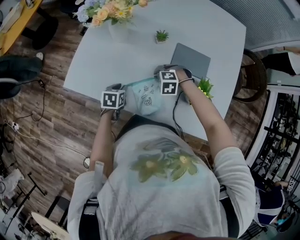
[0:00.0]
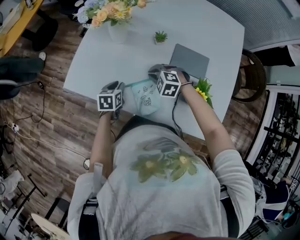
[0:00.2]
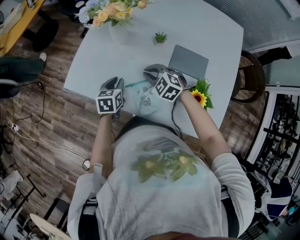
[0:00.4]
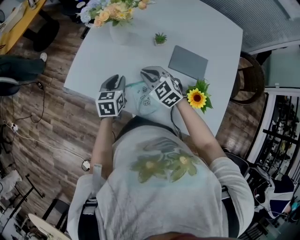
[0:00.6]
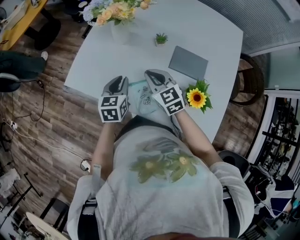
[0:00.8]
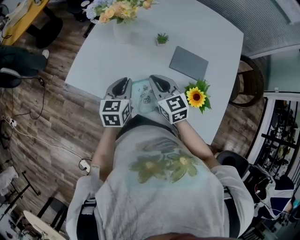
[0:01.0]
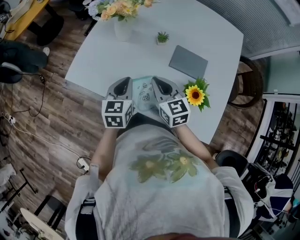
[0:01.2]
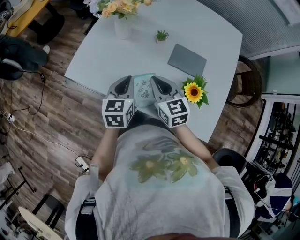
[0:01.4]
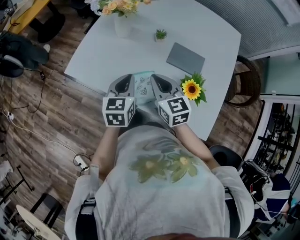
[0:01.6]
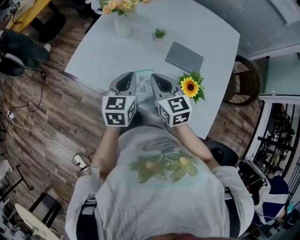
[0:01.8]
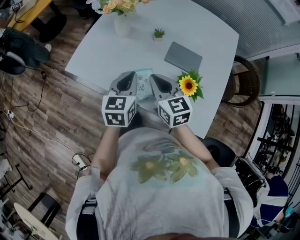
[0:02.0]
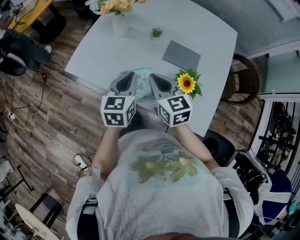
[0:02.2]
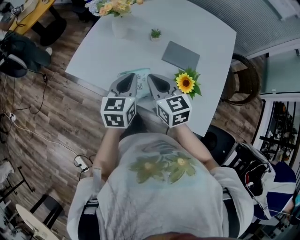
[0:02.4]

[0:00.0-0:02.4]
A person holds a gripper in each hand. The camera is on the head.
0:00.0 to 0:01.2: The grippers both shift upward by about 20 cm. The left gripper turns by some 30 degrees, while the right gripper points its fingers some 50 degrees further upward.
0:01.2 to 0:02.4: The two grippers go about 10 cm upward and backward.

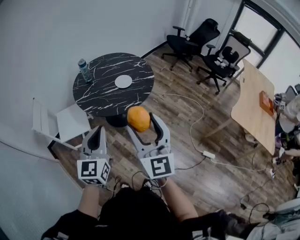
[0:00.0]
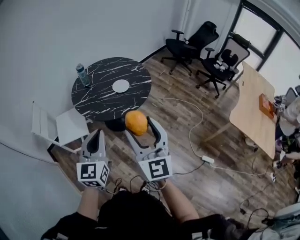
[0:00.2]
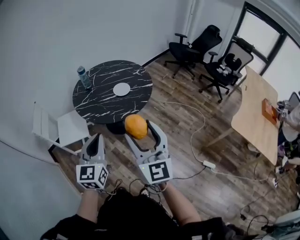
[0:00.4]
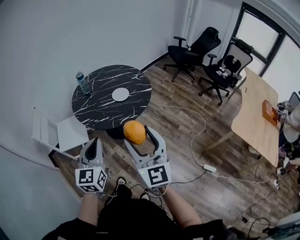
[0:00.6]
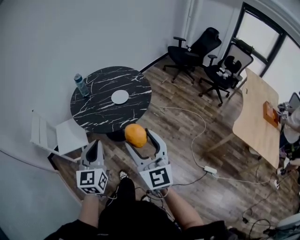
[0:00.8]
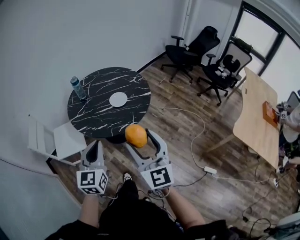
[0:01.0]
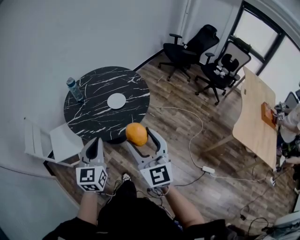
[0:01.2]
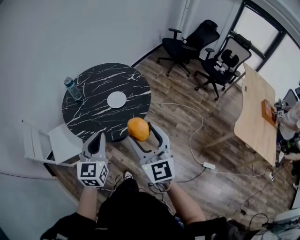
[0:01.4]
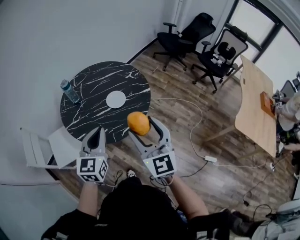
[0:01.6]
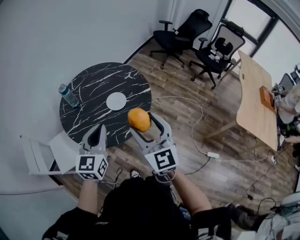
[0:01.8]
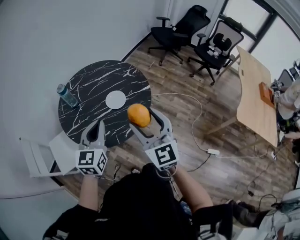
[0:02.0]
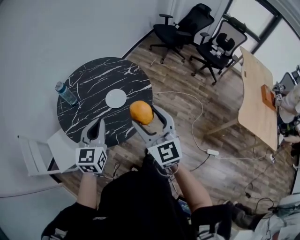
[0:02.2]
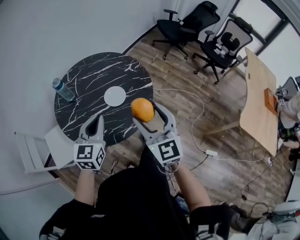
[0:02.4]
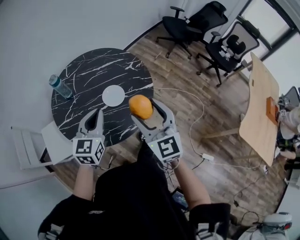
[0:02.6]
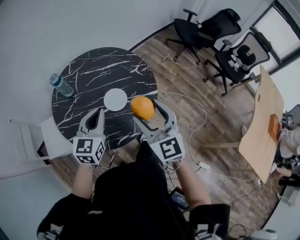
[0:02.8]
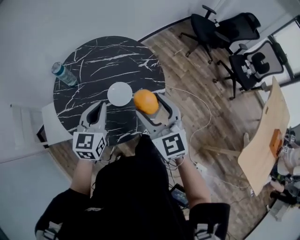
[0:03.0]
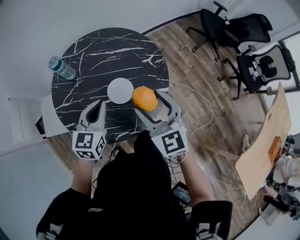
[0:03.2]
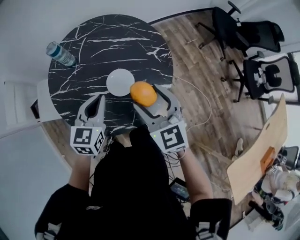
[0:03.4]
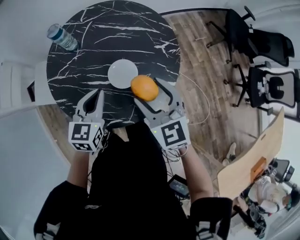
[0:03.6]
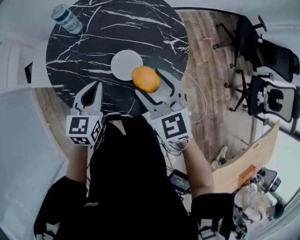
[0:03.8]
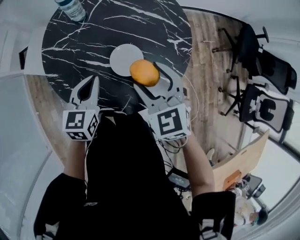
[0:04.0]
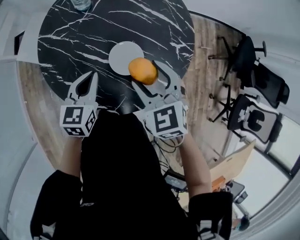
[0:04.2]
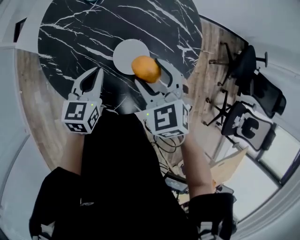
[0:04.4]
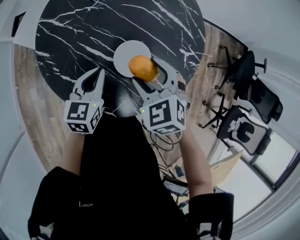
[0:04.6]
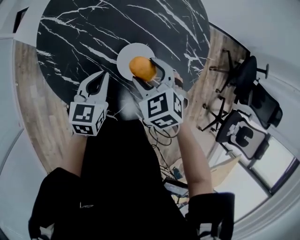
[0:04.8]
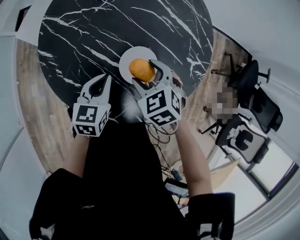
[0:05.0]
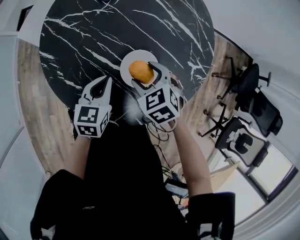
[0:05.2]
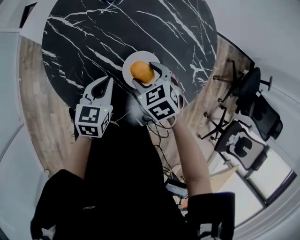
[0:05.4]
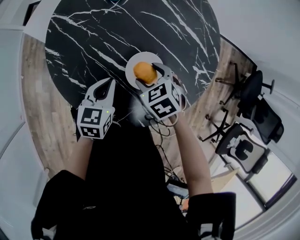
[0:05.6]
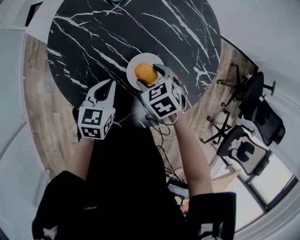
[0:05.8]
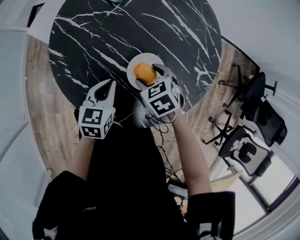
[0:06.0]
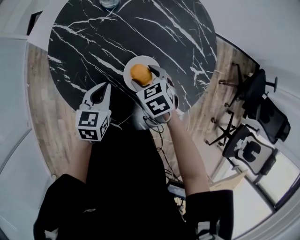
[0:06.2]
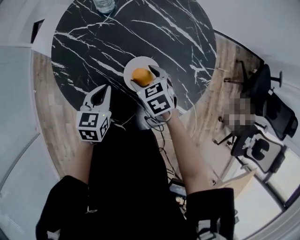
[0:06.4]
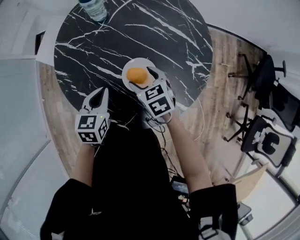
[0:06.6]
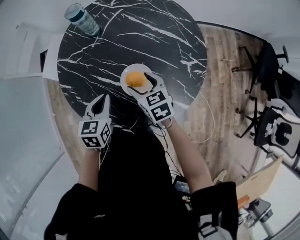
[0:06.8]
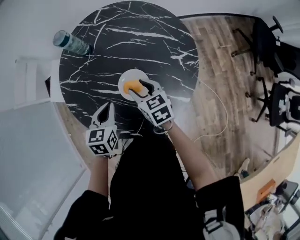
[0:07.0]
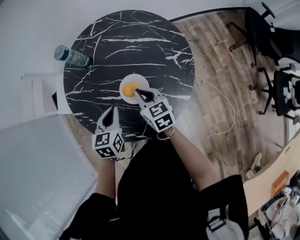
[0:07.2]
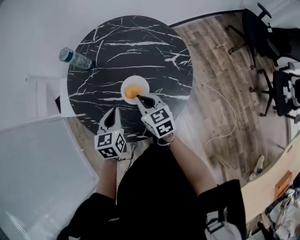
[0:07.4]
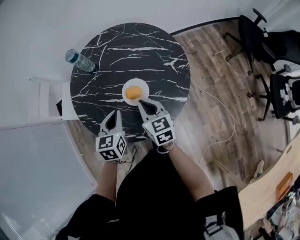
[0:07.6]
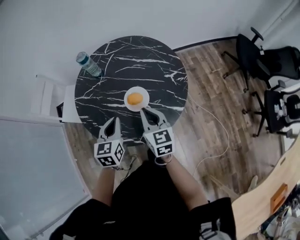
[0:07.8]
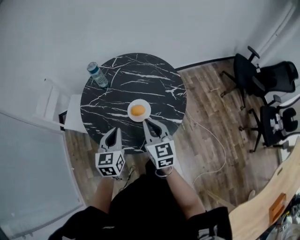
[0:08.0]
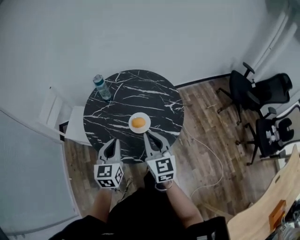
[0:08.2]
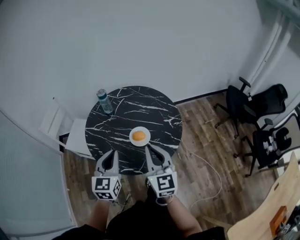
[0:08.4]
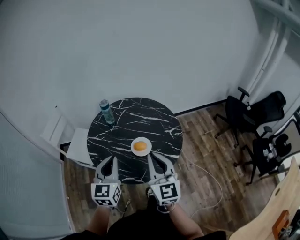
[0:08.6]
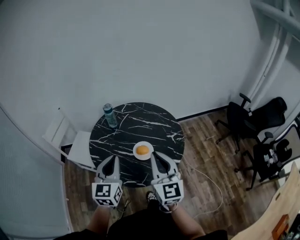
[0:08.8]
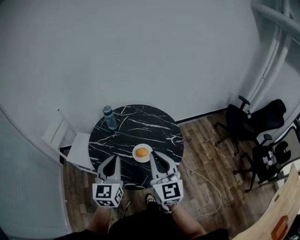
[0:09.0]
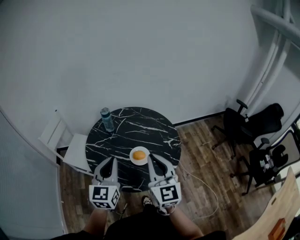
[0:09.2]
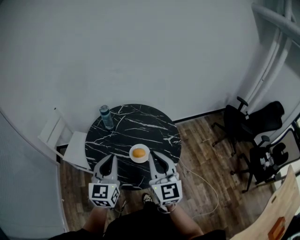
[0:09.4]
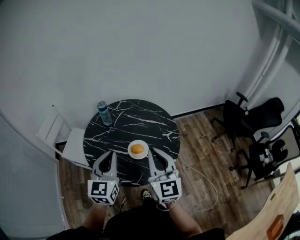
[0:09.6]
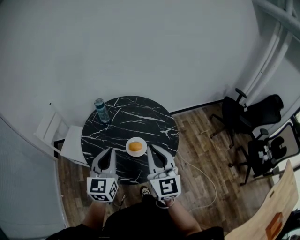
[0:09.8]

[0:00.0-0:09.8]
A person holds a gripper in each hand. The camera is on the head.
0:00.0 to 0:01.4: Both grippers move forward, about 20 cm.
0:01.4 to 0:02.8: Both grippers travel together forward, approximately 25 cm.
0:02.8 to 0:04.2: The left gripper moves downward, approximately 20 cm, and turns by roughly 40 degrees, while the right gripper shifts by about 25 cm, and angles its fingers downward, by some 30 degrees.
0:04.2 to 0:05.6: The left gripper goes roughly 10 cm downward, while the right gripper travels downward by roughly 20 cm, and changes its angle by some 30 degrees.
0:05.6 to 0:07.0: The grippers both shift upward by approximately 10 cm. The right gripper angles its fingers upward, by some 30 degrees.
0:07.0 to 0:08.4: Both grippers travel together upward and backward, some 30 cm. The right gripper angles its fingers upward, by some 30 degrees, and closes up, while the left gripper turns by approximately 30 degrees.
0:08.4 to 0:09.8: Both grippers move upward, about 5 cm.

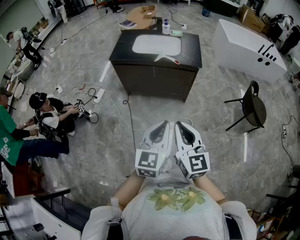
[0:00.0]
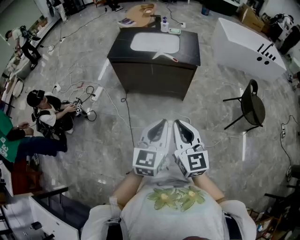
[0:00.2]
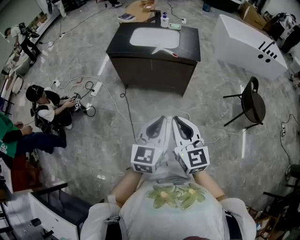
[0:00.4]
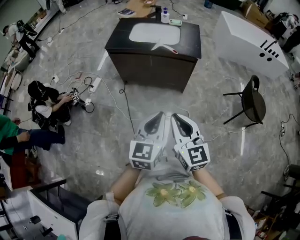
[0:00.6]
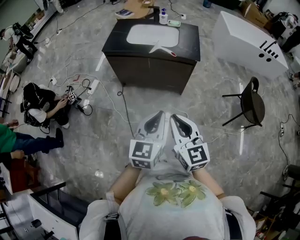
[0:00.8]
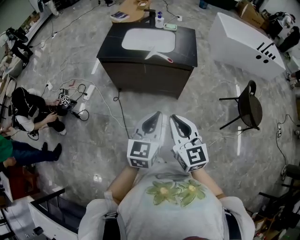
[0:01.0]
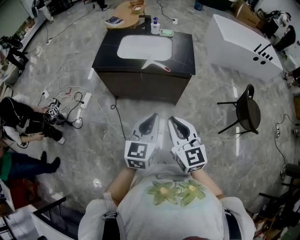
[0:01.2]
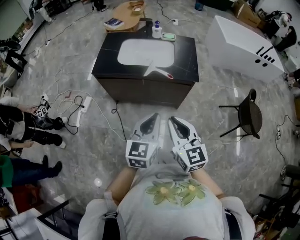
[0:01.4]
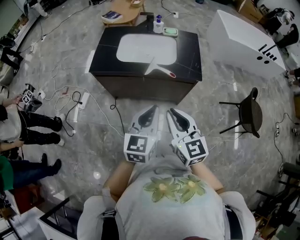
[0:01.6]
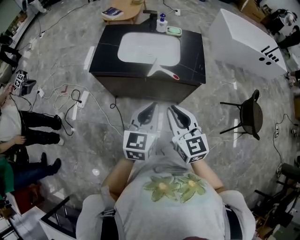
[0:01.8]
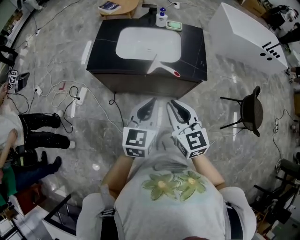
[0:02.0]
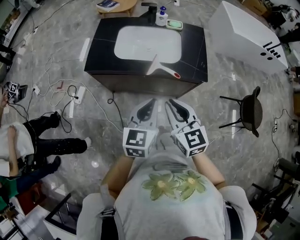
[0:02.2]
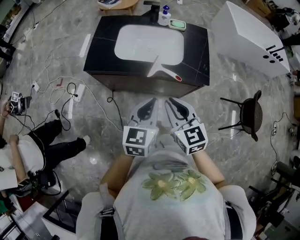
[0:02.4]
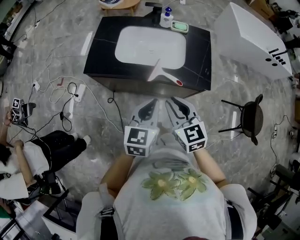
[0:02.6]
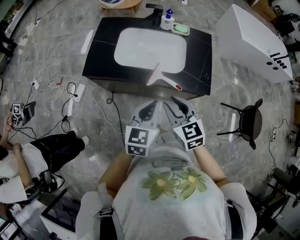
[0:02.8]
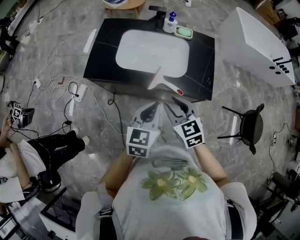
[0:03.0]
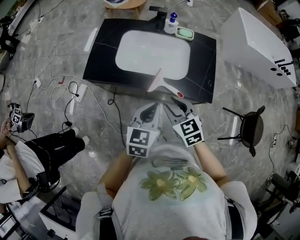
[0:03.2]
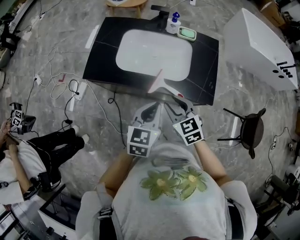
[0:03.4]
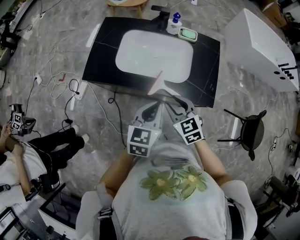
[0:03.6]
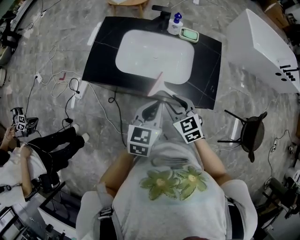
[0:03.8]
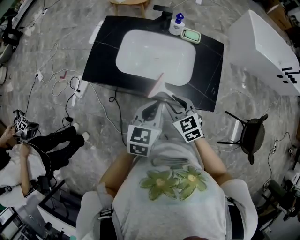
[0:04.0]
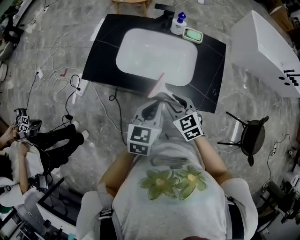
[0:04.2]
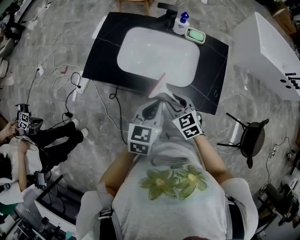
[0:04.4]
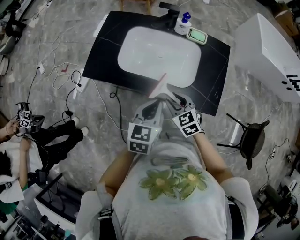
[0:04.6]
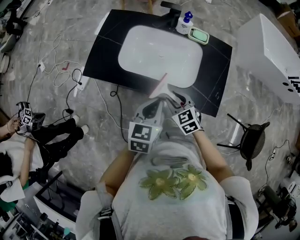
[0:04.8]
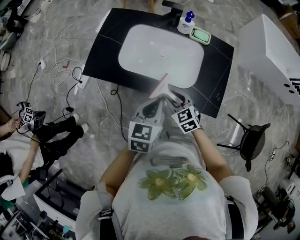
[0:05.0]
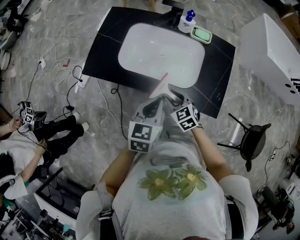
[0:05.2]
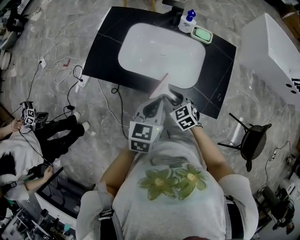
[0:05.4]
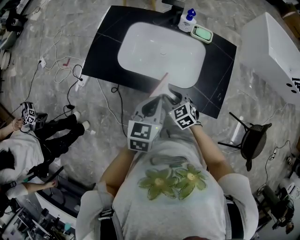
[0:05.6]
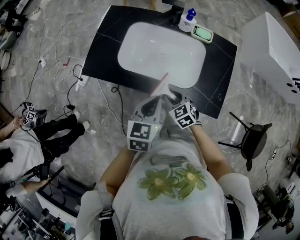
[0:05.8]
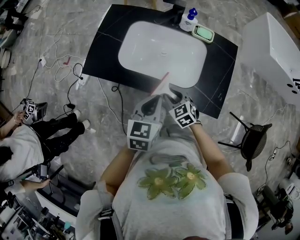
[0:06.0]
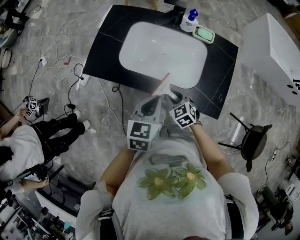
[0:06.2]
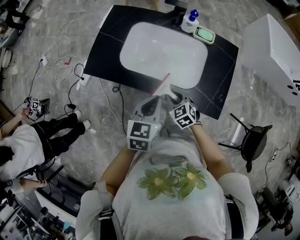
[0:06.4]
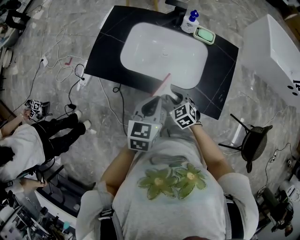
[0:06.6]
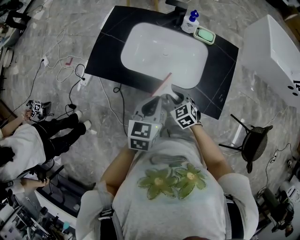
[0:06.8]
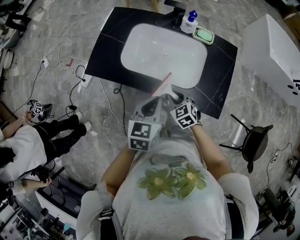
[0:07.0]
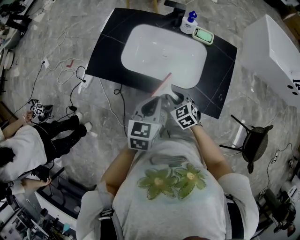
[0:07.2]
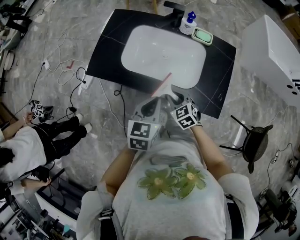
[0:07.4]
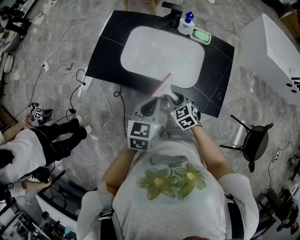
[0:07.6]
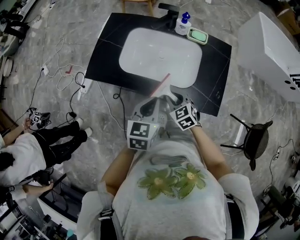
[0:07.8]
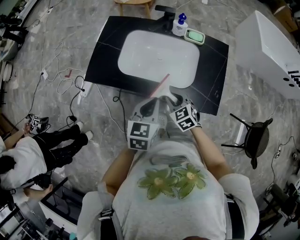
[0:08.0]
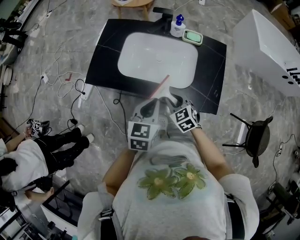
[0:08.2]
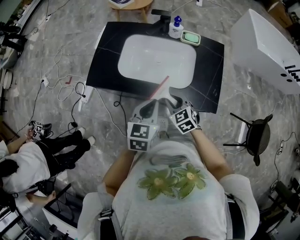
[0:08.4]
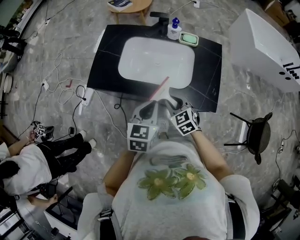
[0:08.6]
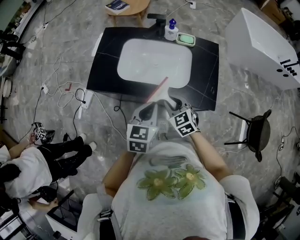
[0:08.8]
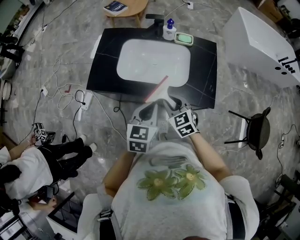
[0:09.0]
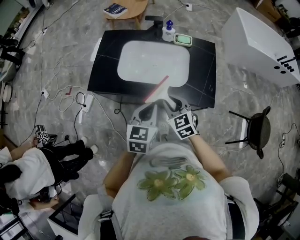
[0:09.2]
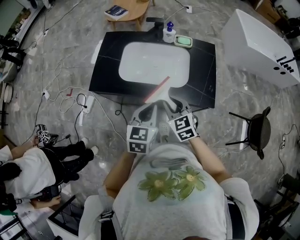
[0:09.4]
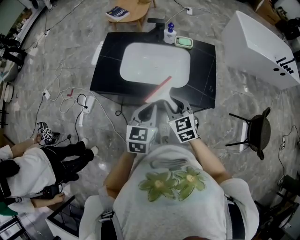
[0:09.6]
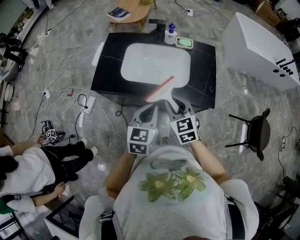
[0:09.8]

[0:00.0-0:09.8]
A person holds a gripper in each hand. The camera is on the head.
0:00.0 to 0:01.4: Both grippers travel together forward, roughly 25 cm.
0:01.4 to 0:02.8: Both grippers move forward, approximately 25 cm. The right gripper rotates roughly 20 degrees.
0:02.8 to 0:04.2: The left gripper goes roughly 10 cm forward, while the right gripper goes about 15 cm downward and forward.
0:04.2 to 0:05.6: The right gripper travels downward by approximately 10 cm.
0:05.6 to 0:07.0: The grippers move only a little.
0:07.0 to 0:08.4: The right gripper moves upward, about 5 cm.
0:08.4 to 0:09.8: The right gripper goes approximately 10 cm upward, while the left gripper travels backward by about 5 cm.

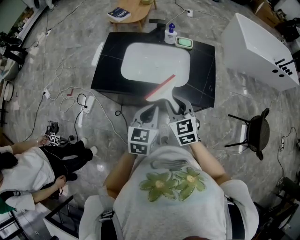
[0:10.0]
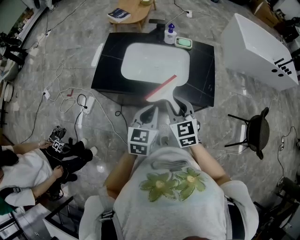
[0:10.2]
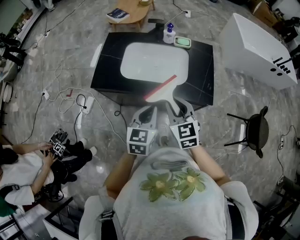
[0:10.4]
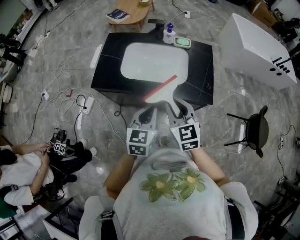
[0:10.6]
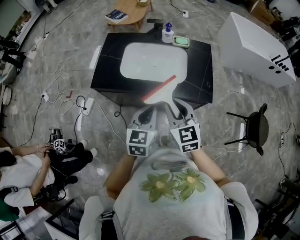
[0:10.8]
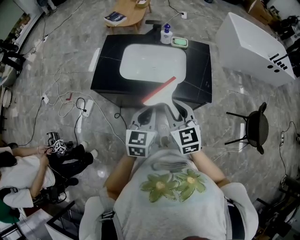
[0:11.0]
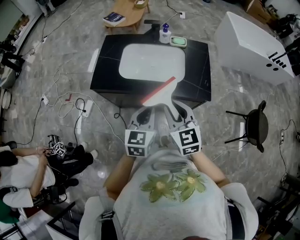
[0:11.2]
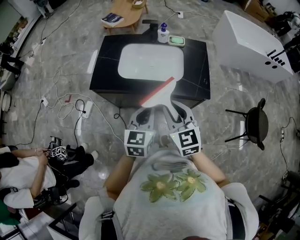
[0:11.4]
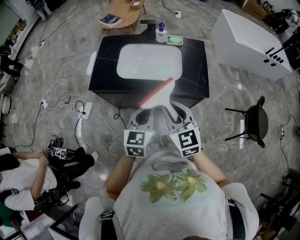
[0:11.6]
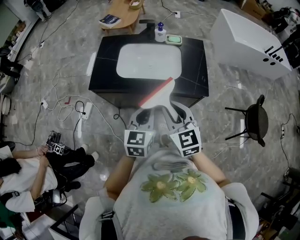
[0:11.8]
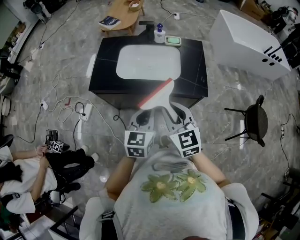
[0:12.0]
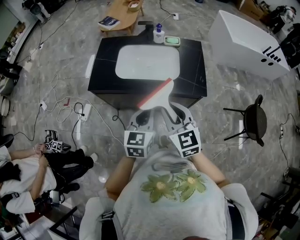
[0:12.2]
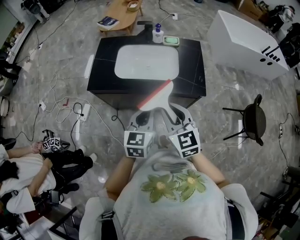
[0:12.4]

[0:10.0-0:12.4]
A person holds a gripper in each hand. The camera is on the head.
0:10.0 to 0:11.2: The right gripper moves backward and upward, approximately 10 cm.
0:11.2 to 0:12.4: The grippers move only a little.
